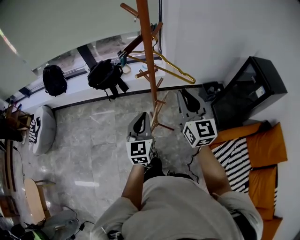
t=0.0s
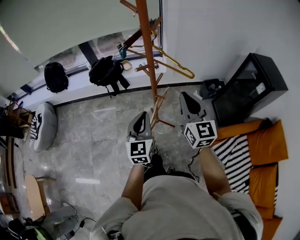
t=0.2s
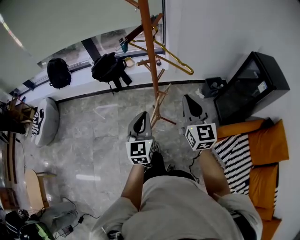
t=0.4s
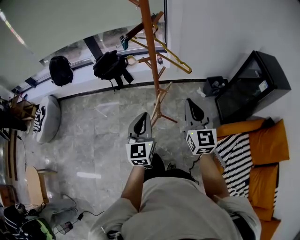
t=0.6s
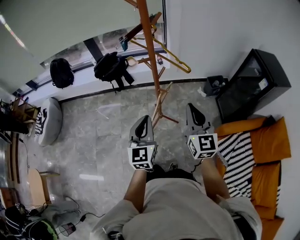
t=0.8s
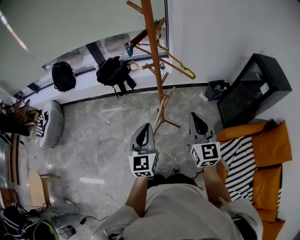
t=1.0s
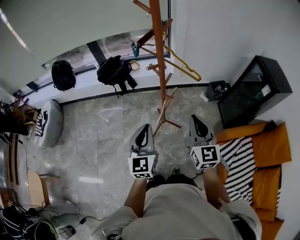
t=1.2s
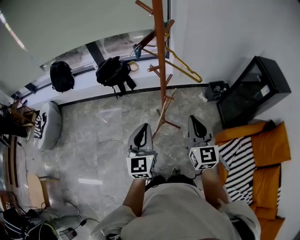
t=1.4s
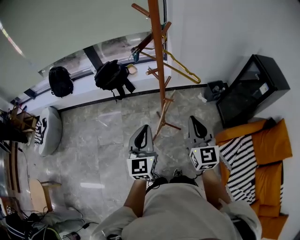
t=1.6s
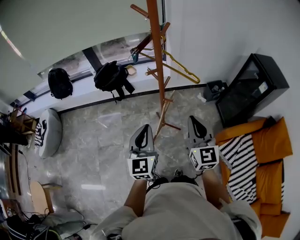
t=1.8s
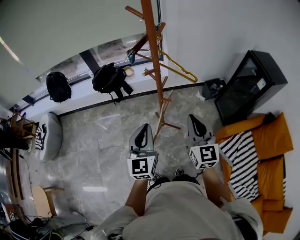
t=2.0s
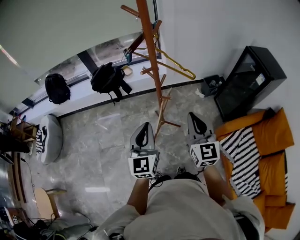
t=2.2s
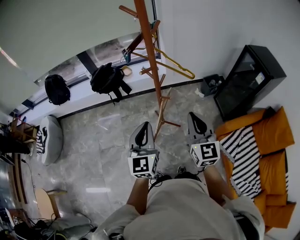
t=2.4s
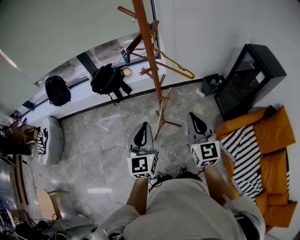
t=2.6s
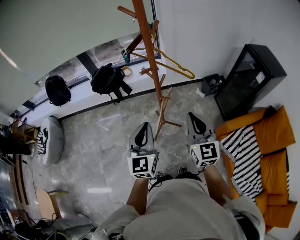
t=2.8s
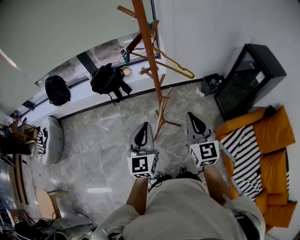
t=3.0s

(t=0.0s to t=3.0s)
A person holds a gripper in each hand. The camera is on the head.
t=0.0s - t=1.6s: The left gripper shifts approximately 10 cm backward. Meanwhile the right gripper heads backward and downward, covering roughly 10 cm.
t=1.6s - t=3.0s: The grippers make only small movements.

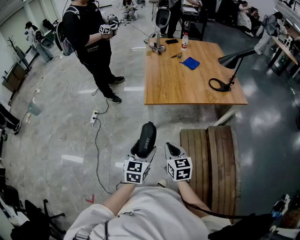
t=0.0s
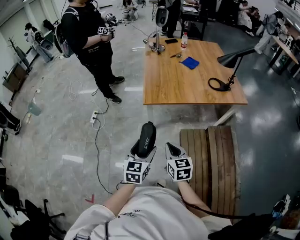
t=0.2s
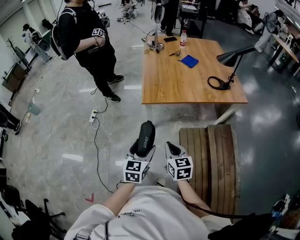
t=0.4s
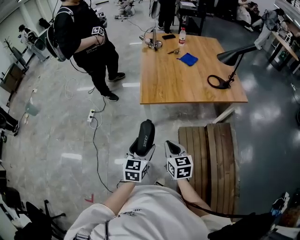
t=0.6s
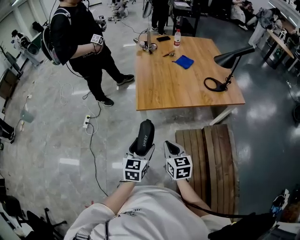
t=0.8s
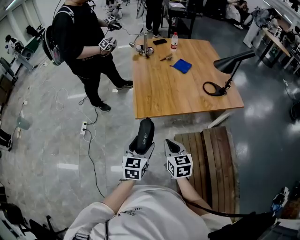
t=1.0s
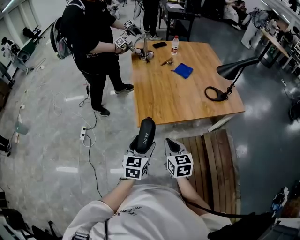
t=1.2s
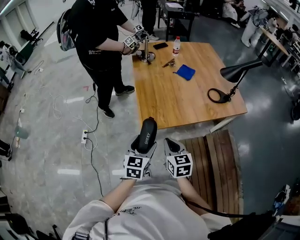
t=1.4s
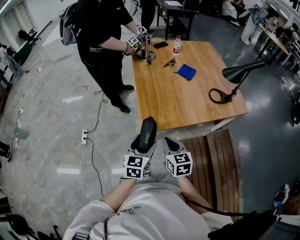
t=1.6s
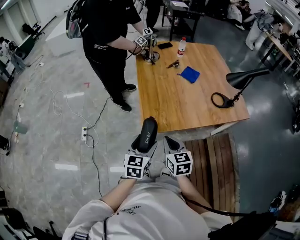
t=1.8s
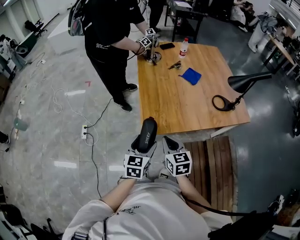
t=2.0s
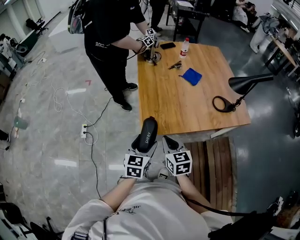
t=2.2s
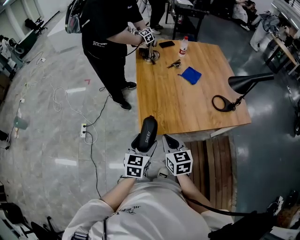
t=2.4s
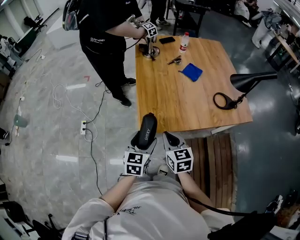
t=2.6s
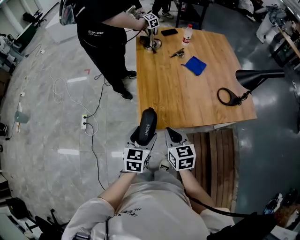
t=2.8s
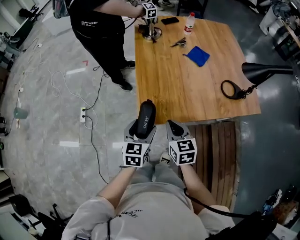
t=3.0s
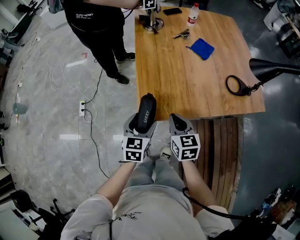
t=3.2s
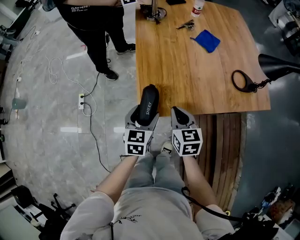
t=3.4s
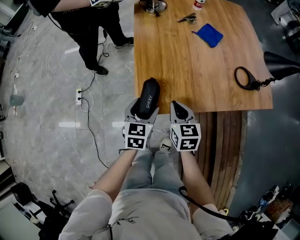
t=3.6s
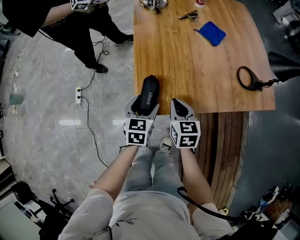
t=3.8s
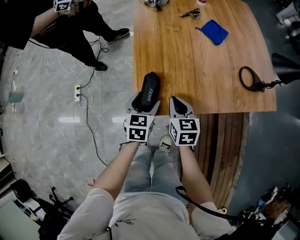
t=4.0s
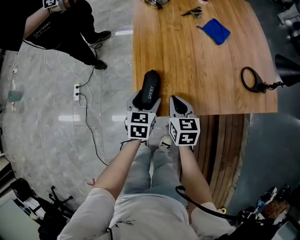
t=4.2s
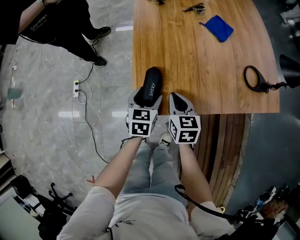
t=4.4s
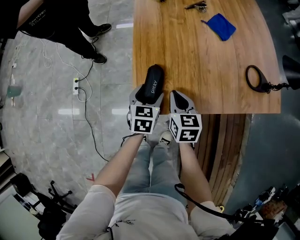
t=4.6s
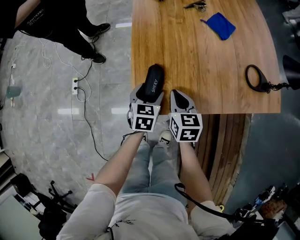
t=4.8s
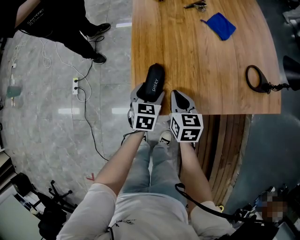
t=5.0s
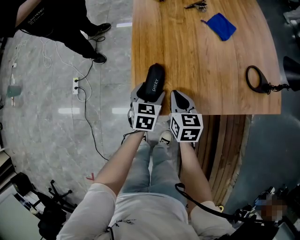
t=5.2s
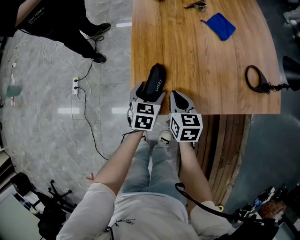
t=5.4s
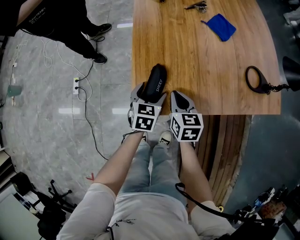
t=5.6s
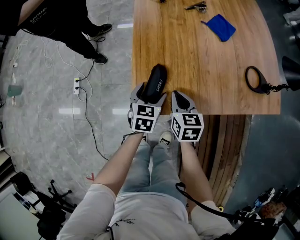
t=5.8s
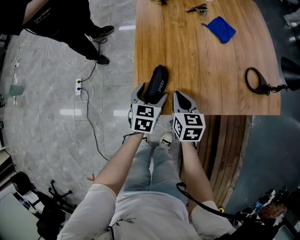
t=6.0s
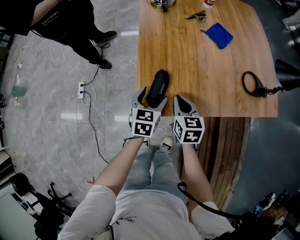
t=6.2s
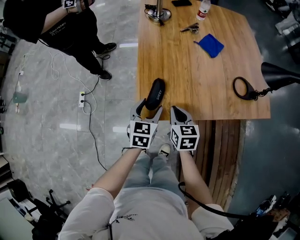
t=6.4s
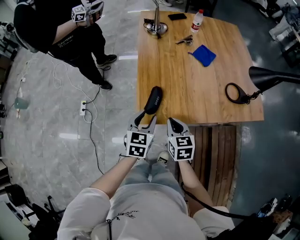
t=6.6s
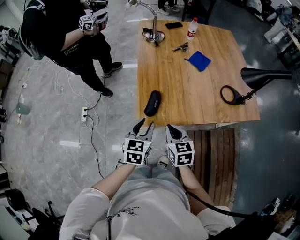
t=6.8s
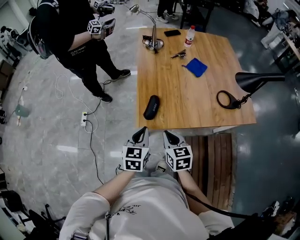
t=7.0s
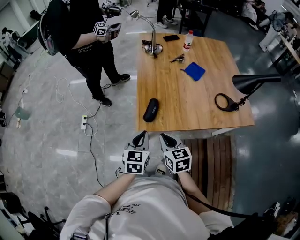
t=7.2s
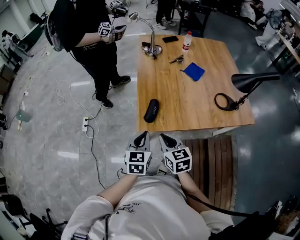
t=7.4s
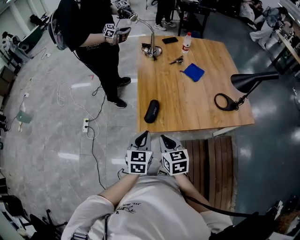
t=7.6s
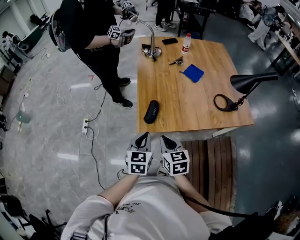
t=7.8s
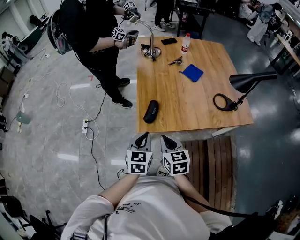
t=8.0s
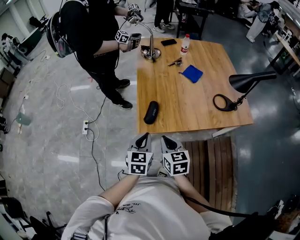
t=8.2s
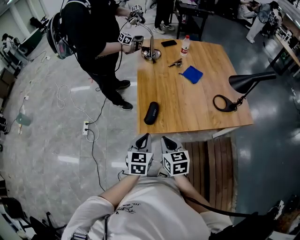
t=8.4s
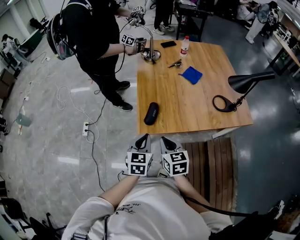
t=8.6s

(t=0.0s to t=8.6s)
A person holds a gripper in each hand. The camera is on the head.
t=0.0s - t=1.4s: The two grippers go about 25 cm forward.
t=1.4s - t=2.8s: The two grippers go roughly 10 cm forward.
t=2.8s - t=4.4s: Both grippers move downward and forward, approximately 25 cm.
t=4.4s - t=5.8s: The grippers make only small movements.
t=5.8s - t=7.2s: The right gripper shifts some 25 cm backward and upward, while the left gripper moves upward and backward, some 25 cm, and closes its fingers.
t=7.2s - t=8.6s: The grippers stay close to where they were, moving slightly.

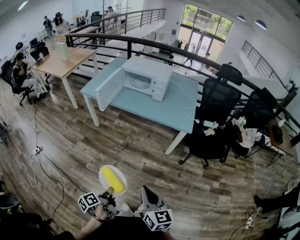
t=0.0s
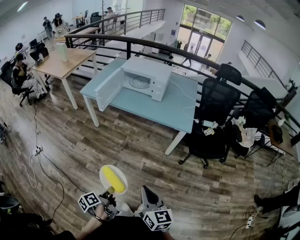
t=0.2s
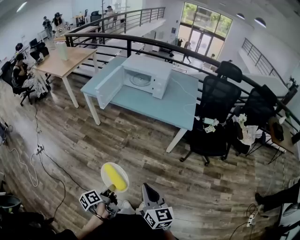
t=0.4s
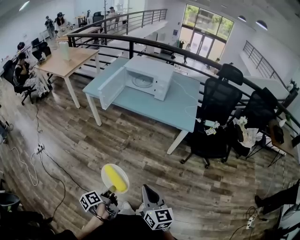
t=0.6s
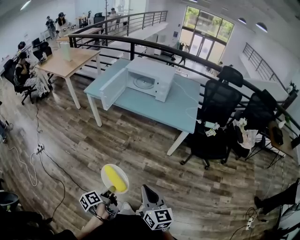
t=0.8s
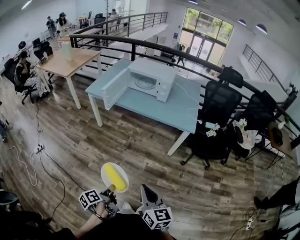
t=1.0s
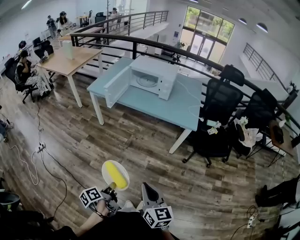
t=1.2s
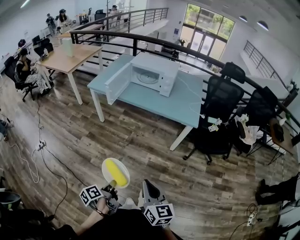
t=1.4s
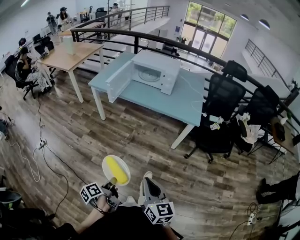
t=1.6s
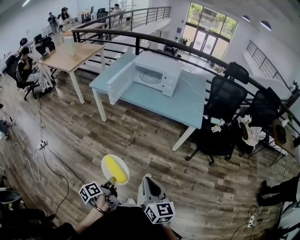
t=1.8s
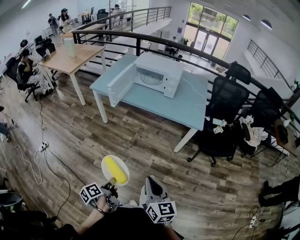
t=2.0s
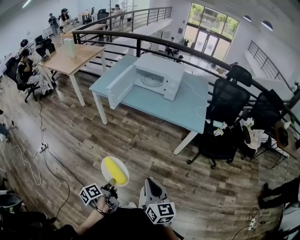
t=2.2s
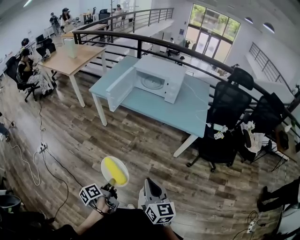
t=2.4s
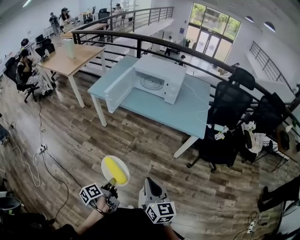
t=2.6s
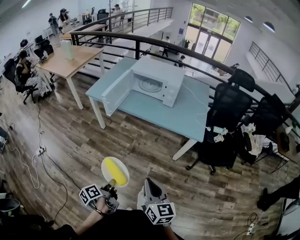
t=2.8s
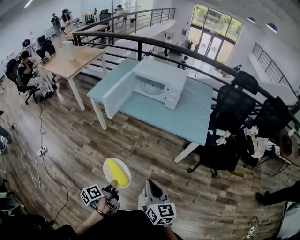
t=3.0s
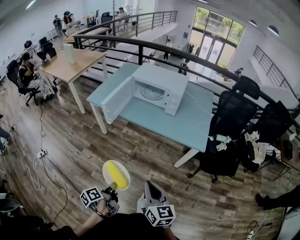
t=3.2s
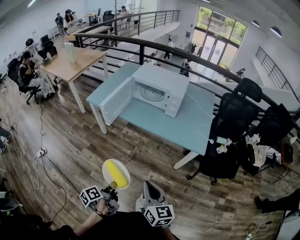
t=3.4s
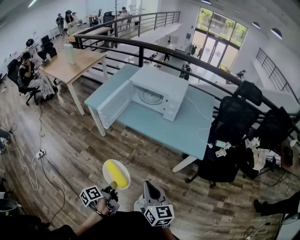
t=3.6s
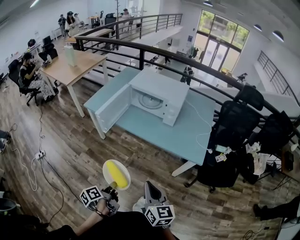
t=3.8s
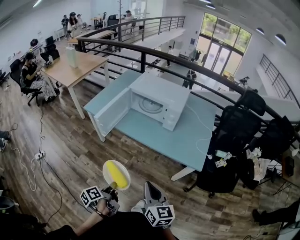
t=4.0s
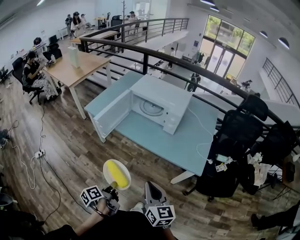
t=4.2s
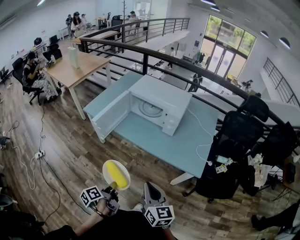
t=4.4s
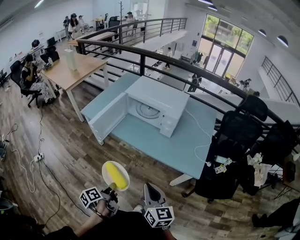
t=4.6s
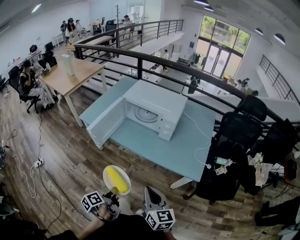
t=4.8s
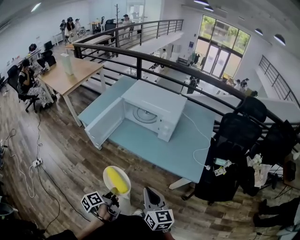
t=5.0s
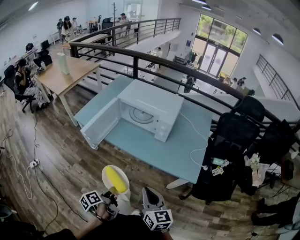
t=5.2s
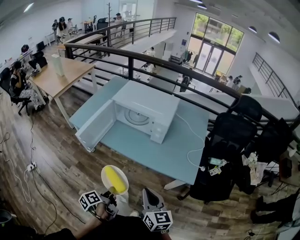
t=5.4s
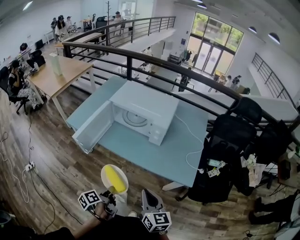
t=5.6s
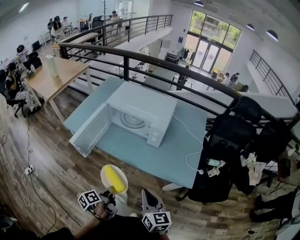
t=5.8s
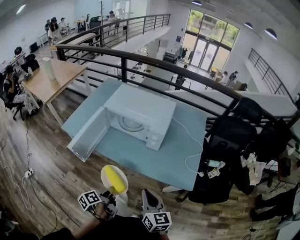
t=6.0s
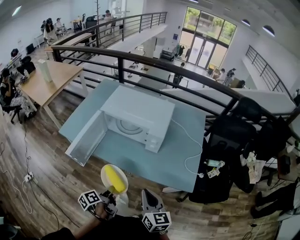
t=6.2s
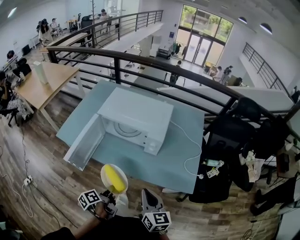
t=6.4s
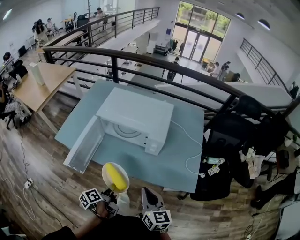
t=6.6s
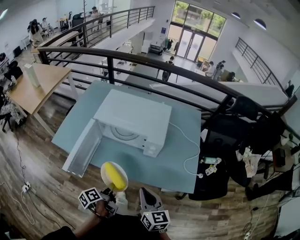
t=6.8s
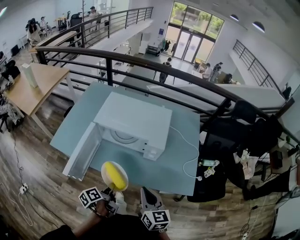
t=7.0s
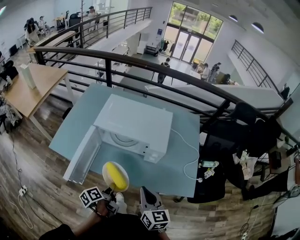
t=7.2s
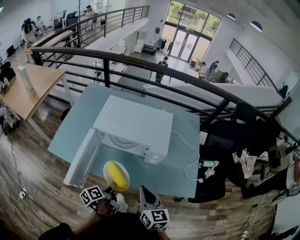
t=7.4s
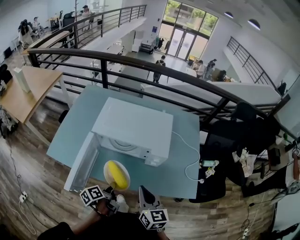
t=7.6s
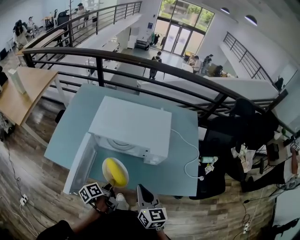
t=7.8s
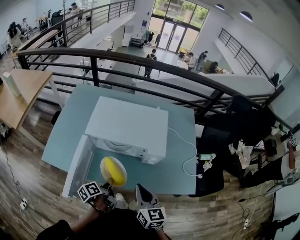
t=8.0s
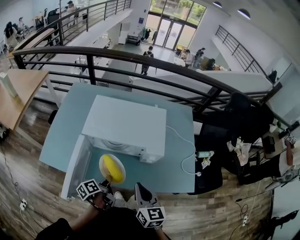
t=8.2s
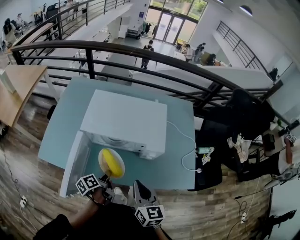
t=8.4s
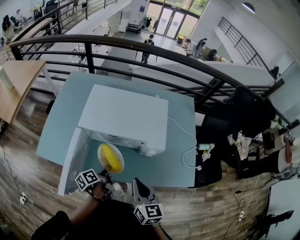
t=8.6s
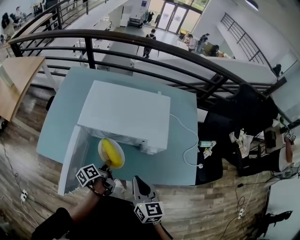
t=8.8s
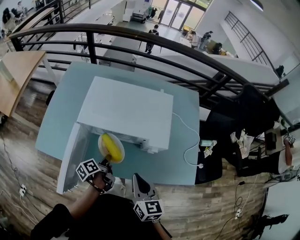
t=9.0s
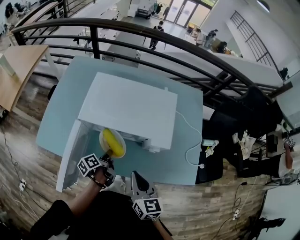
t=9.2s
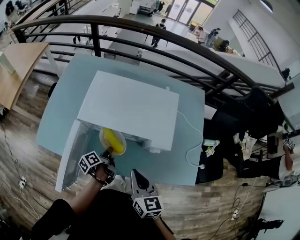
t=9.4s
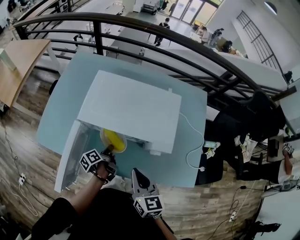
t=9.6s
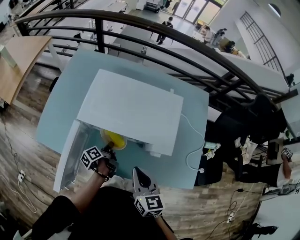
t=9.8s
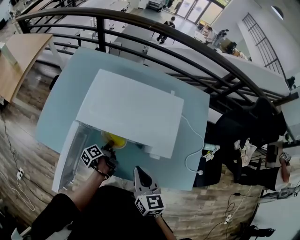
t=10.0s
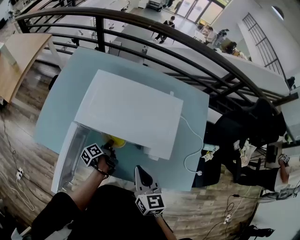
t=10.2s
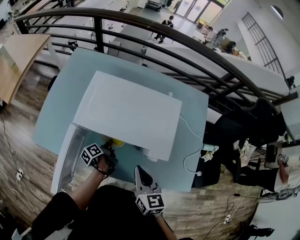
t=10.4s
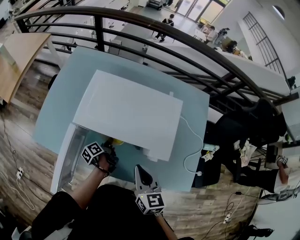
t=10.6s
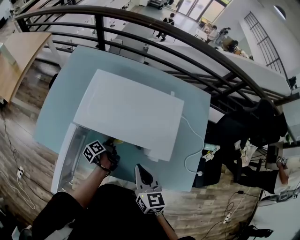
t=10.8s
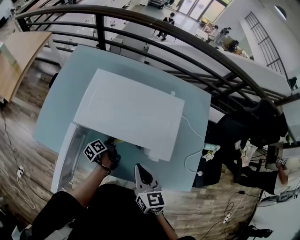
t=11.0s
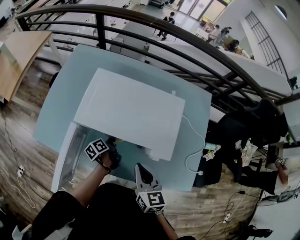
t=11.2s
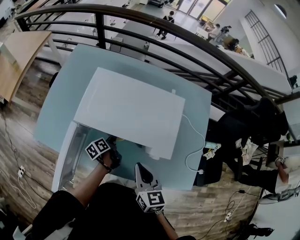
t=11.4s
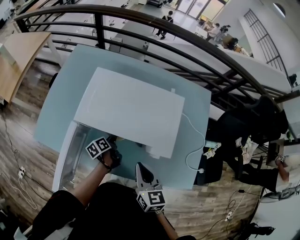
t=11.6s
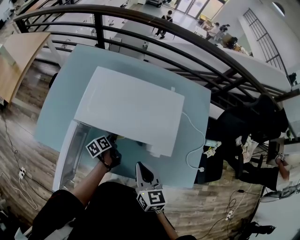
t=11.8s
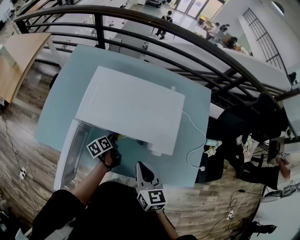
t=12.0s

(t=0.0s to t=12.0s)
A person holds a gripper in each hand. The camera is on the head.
t=0.0s - t=1.6s: The right gripper changes place by about 5 cm.
t=1.6s - t=3.0s: The right gripper changes place by approximately 15 cm.
t=3.0s - t=4.4s: The right gripper changes place by some 20 cm.
t=4.4s - t=6.0s: The right gripper changes place by about 15 cm.
t=6.0s - t=7.6s: The right gripper changes place by about 20 cm.
t=7.6s - t=9.0s: The right gripper changes place by roughly 5 cm.
t=9.0s - t=10.4s: The right gripper ends up approximately 10 cm from where it was.
